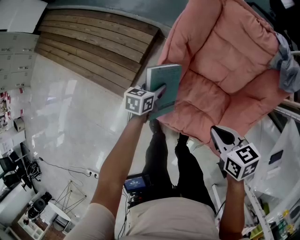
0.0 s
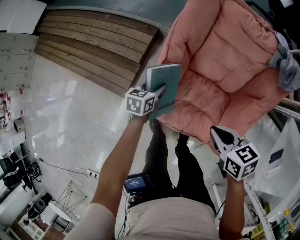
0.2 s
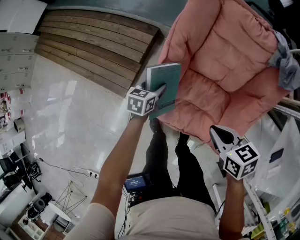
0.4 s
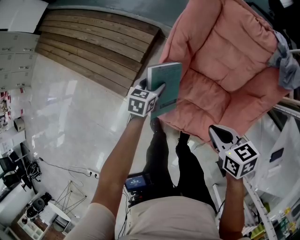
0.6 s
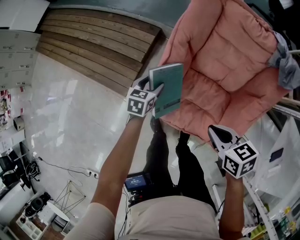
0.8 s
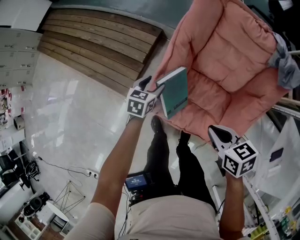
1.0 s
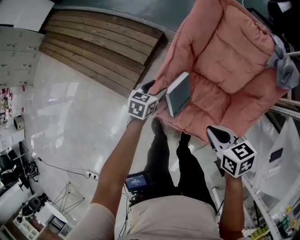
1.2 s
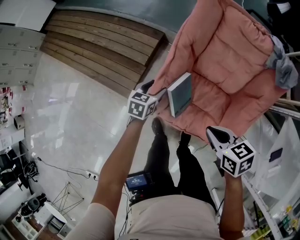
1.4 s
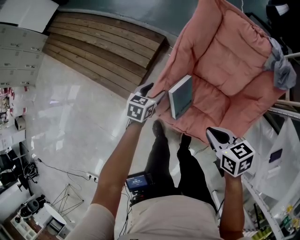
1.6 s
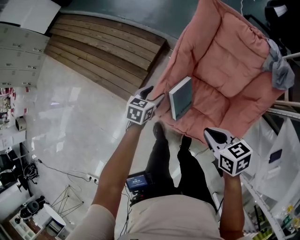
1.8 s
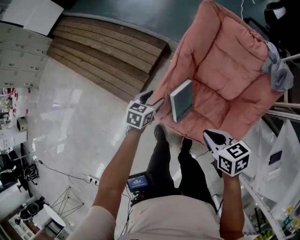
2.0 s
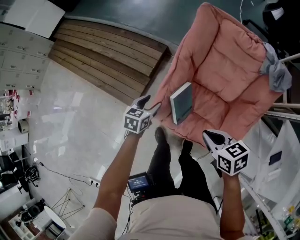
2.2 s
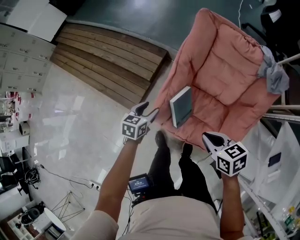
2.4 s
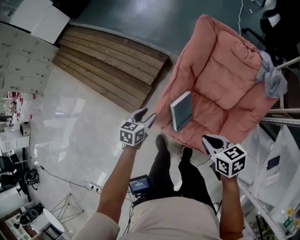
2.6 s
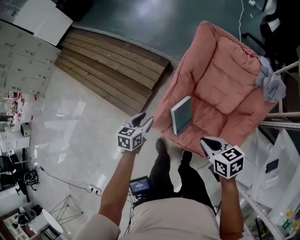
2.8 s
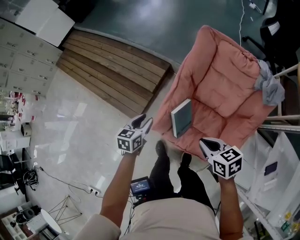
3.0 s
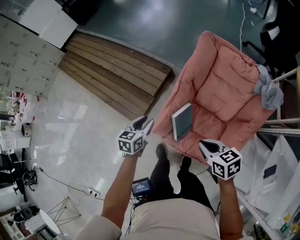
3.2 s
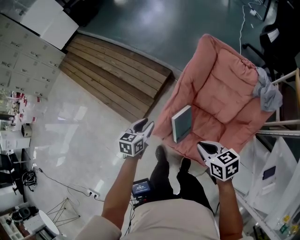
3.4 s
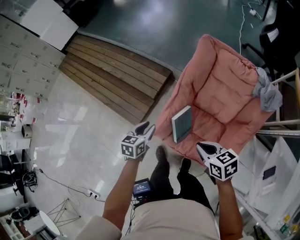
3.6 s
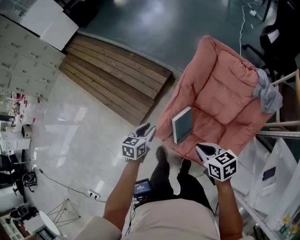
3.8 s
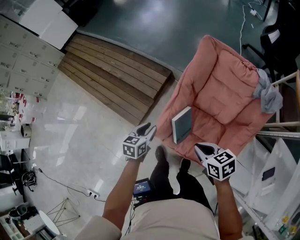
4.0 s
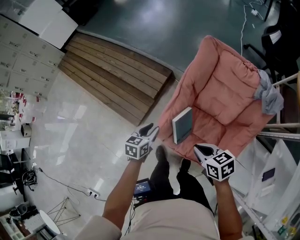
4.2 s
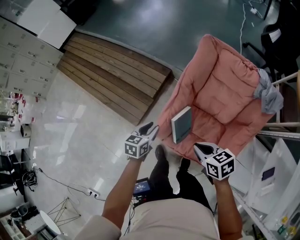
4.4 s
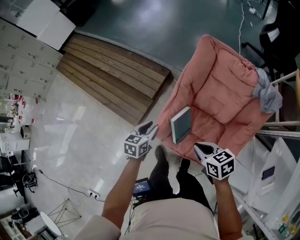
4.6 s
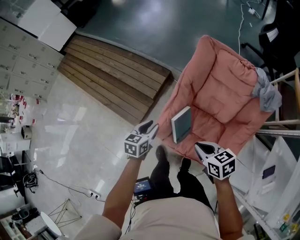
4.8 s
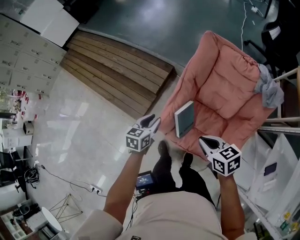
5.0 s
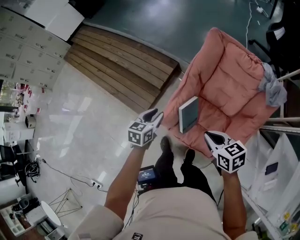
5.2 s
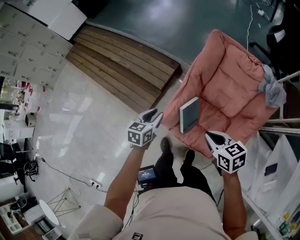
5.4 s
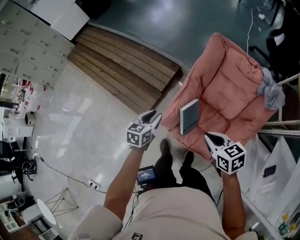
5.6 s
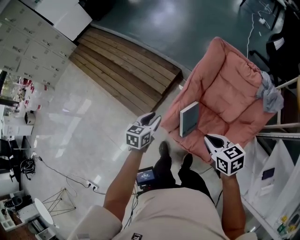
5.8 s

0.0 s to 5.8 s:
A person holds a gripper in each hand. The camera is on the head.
0.0 to 1.4 s: The right gripper shifts by roughly 5 cm, while the left gripper changes place by some 5 cm.
1.4 to 2.8 s: The left gripper is displaced upward, to the left and backward by roughly 15 cm; the right gripper is displaced upward by about 5 cm.
2.8 to 4.4 s: There are only small adjustments of the grippers.
4.4 to 5.8 s: The grippers both shift upward by roughly 5 cm.

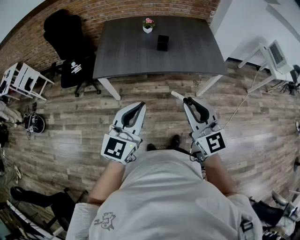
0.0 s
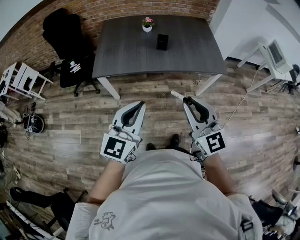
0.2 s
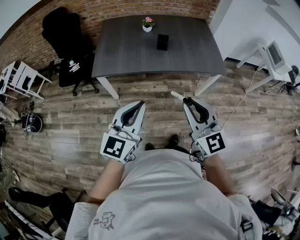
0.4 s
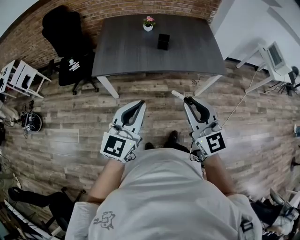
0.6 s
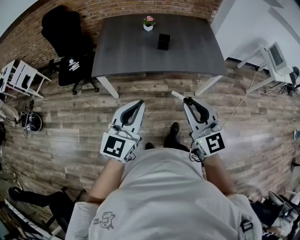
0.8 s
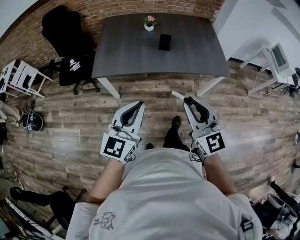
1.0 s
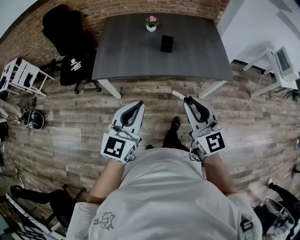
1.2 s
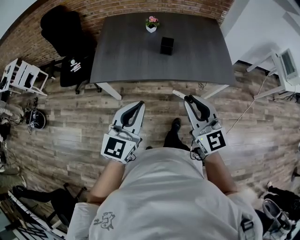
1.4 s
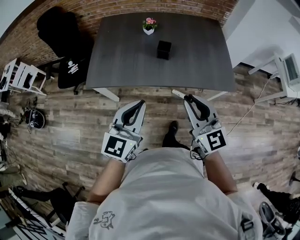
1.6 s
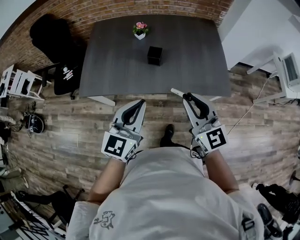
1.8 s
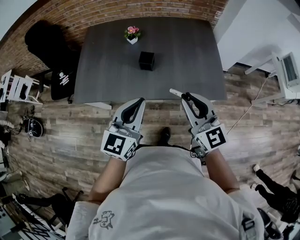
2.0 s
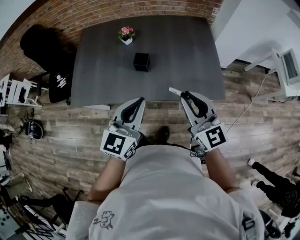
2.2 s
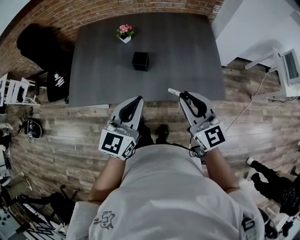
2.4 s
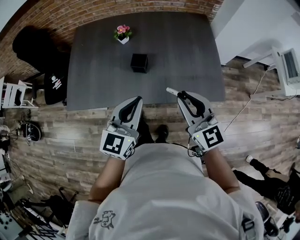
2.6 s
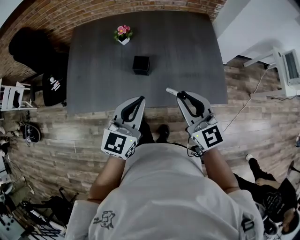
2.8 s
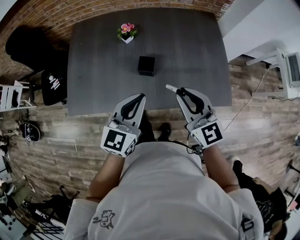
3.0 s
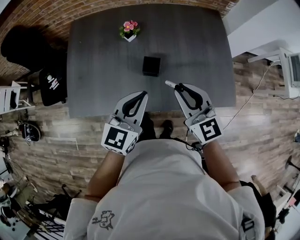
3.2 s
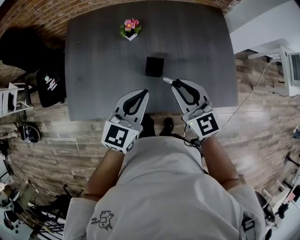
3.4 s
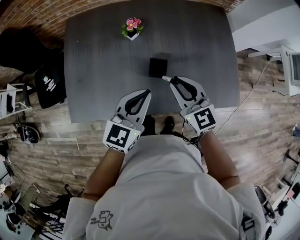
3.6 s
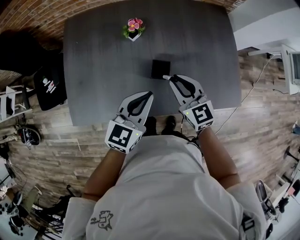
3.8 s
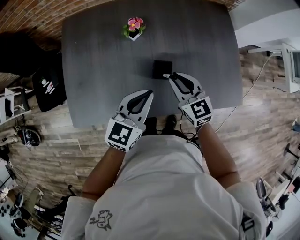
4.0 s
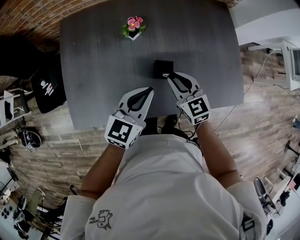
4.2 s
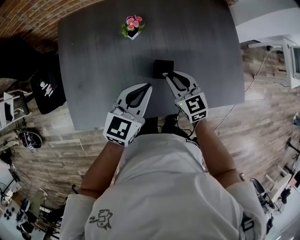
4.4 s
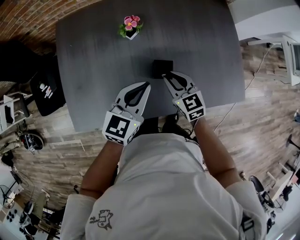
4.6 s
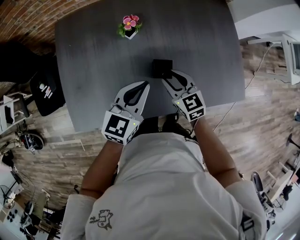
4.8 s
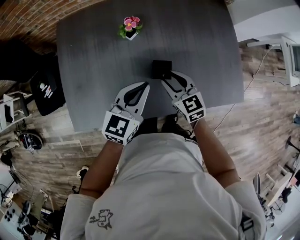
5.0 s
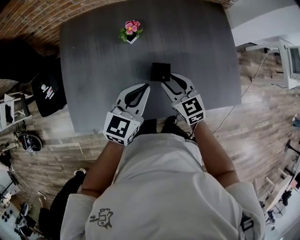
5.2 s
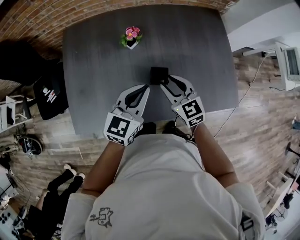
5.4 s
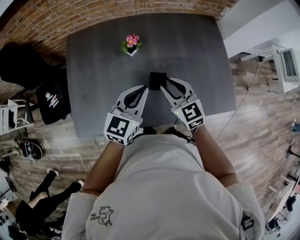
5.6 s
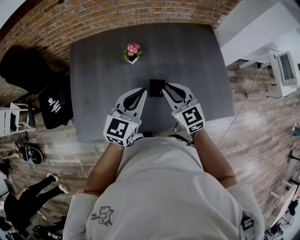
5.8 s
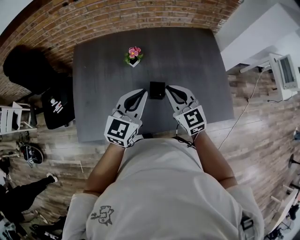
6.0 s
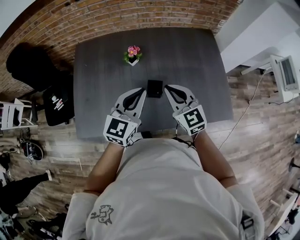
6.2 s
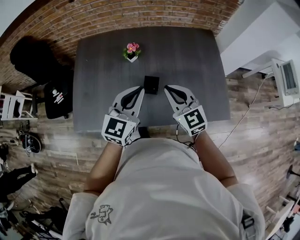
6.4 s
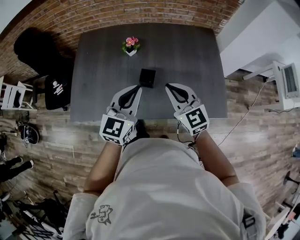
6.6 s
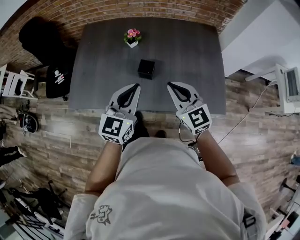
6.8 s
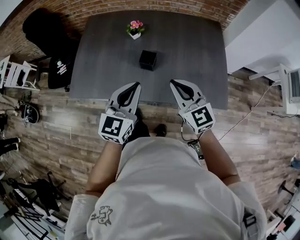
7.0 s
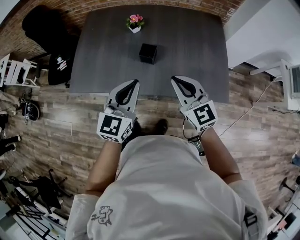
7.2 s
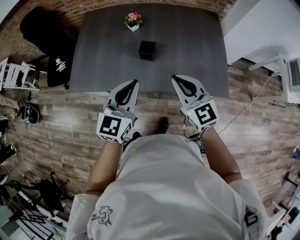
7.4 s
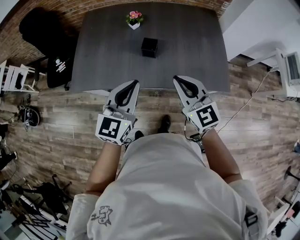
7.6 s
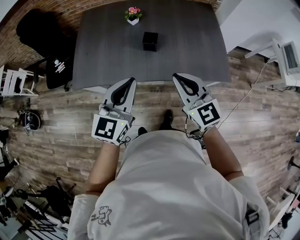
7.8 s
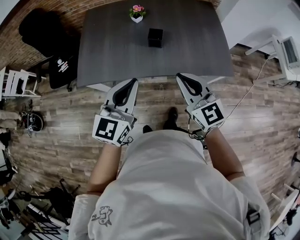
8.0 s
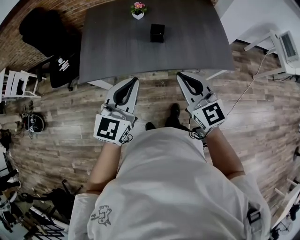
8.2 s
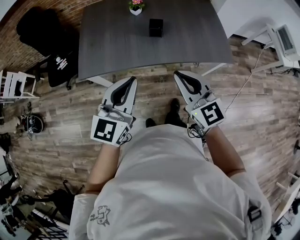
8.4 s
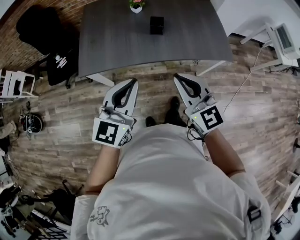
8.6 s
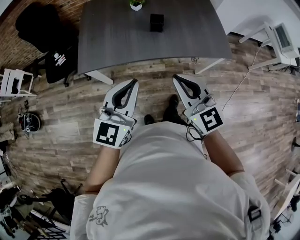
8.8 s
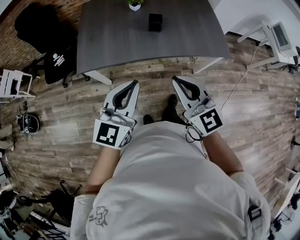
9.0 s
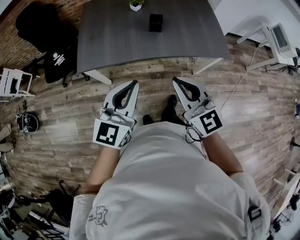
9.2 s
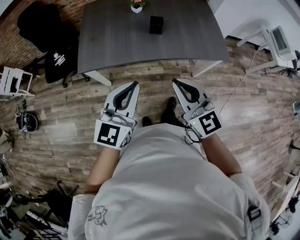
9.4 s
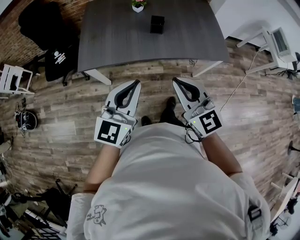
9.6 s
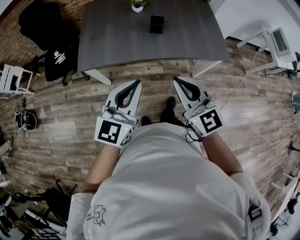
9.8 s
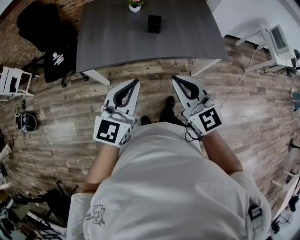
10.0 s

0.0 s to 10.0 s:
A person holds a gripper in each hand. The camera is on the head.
0.0 to 1.4 s: The two grippers go about 15 cm forward.
1.4 to 2.8 s: The grippers both shift forward and to the right by some 30 cm.
2.8 to 4.2 s: The right gripper heads forward, downward and to the left, covering approximately 30 cm. Meanwhile the left gripper is displaced forward, to the left and downward by some 20 cm.
4.2 to 5.8 s: Both grippers move upward, roughly 10 cm.
5.8 to 7.2 s: The right gripper moves backward and to the right, some 20 cm. Meanwhile the left gripper moves backward, about 20 cm.
7.2 to 8.6 s: The grippers both shift backward and to the left by about 25 cm.
8.6 to 10.0 s: There are only small adjustments of the grippers.

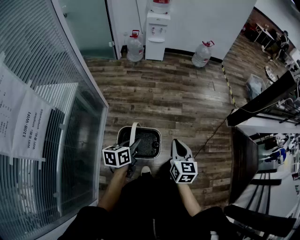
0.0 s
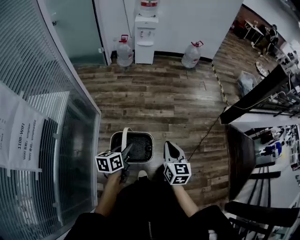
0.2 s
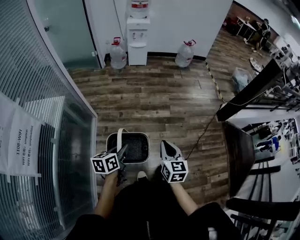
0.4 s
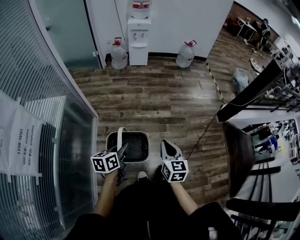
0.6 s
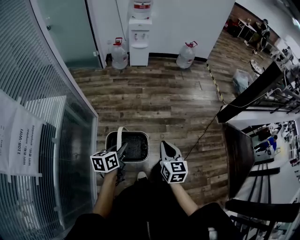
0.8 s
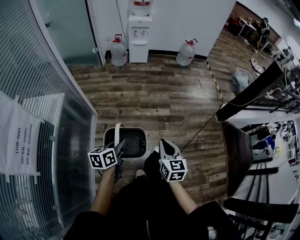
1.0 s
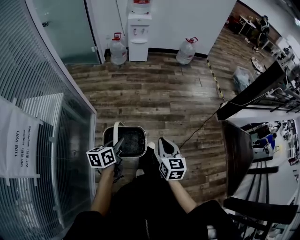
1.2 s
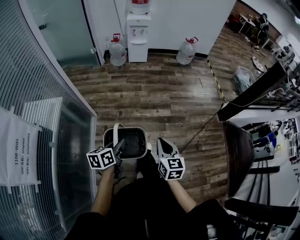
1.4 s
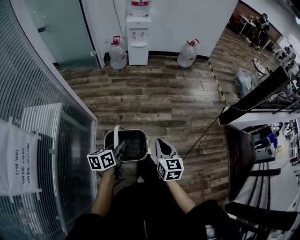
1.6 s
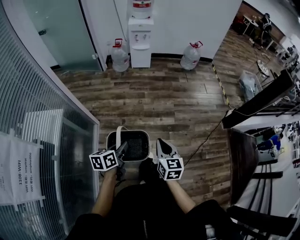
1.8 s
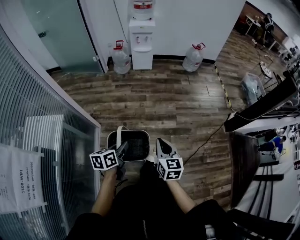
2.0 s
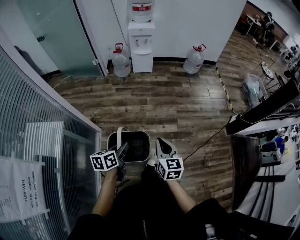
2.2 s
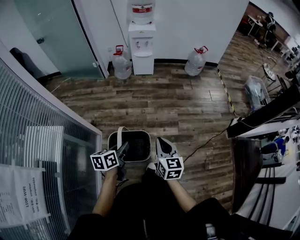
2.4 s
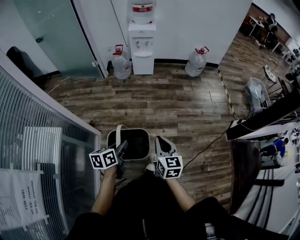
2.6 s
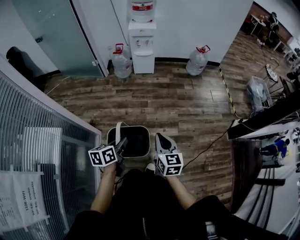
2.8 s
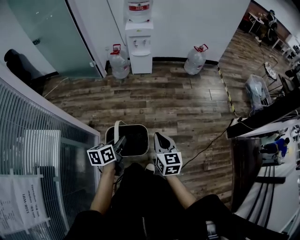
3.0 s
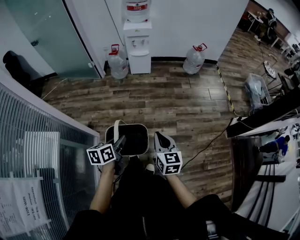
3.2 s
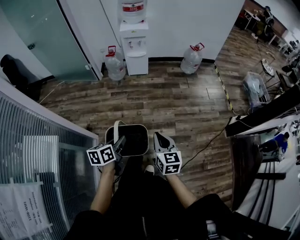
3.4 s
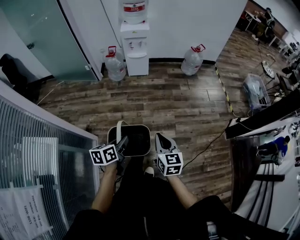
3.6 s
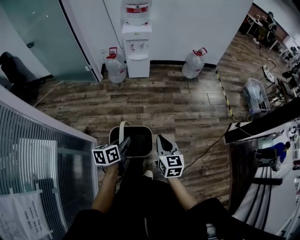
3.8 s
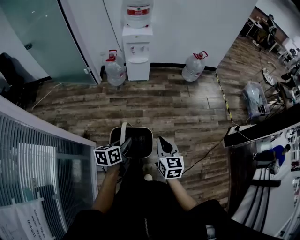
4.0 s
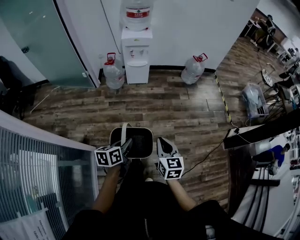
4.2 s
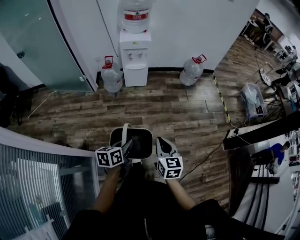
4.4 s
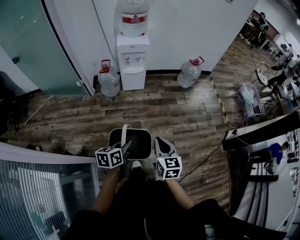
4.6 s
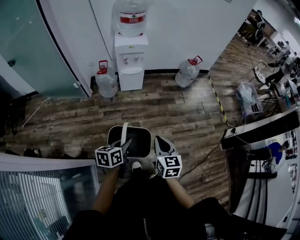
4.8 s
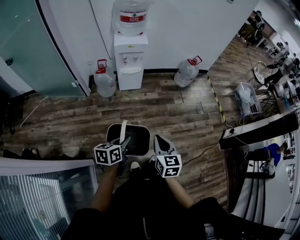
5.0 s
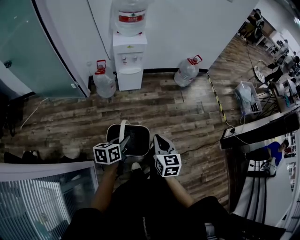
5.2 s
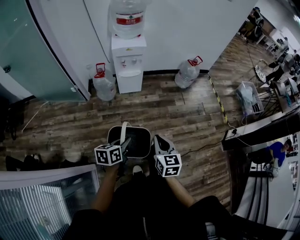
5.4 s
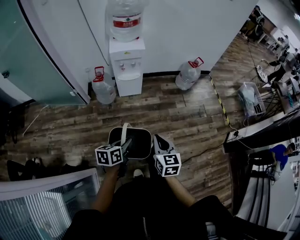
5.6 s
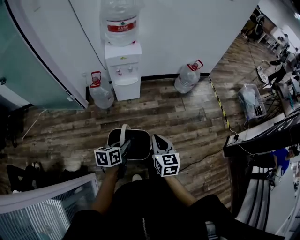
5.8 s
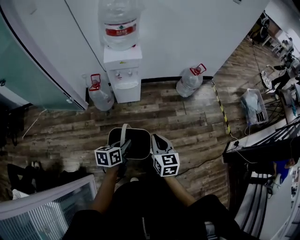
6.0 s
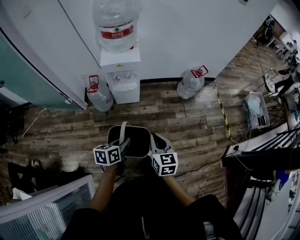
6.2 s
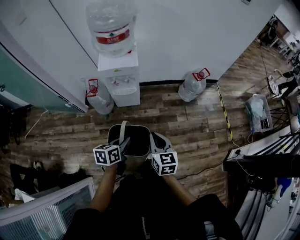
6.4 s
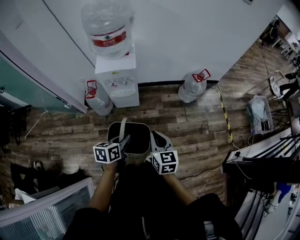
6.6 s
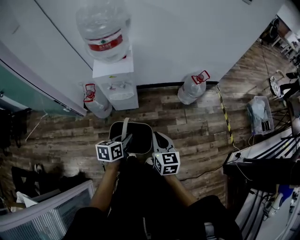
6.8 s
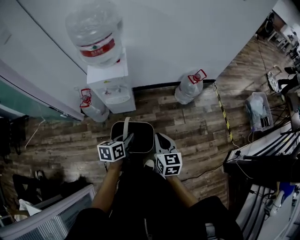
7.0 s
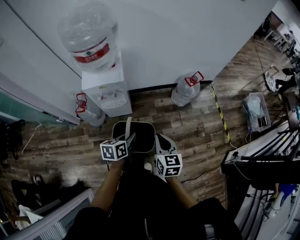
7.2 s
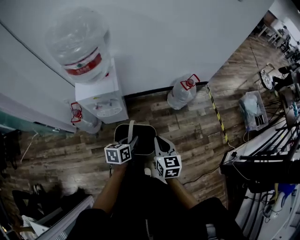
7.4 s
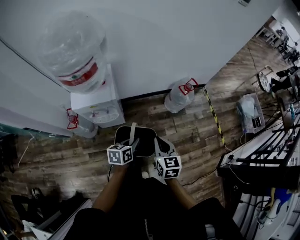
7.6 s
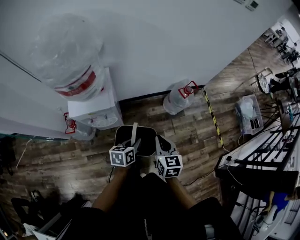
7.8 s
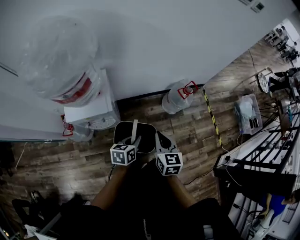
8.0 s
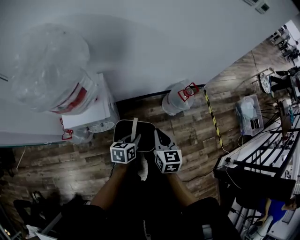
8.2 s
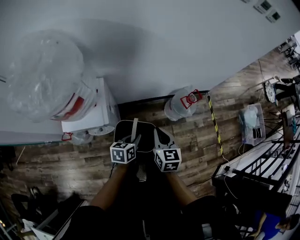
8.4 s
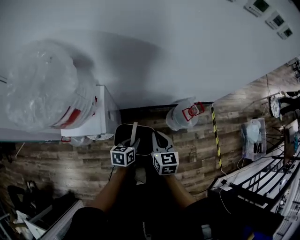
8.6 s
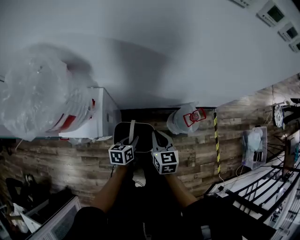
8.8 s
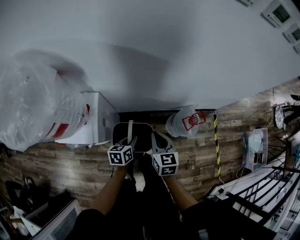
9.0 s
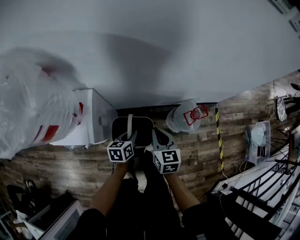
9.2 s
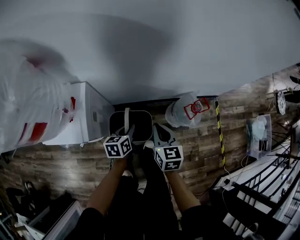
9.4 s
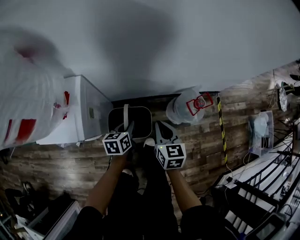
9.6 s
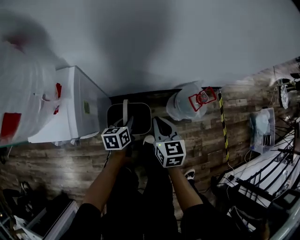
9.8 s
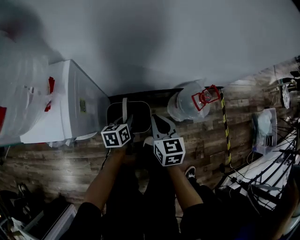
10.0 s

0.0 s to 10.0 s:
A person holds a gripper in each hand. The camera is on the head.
0.0 to 1.4 s: The grippers both shift forward by roughly 5 cm.
1.4 to 2.8 s: Both grippers move forward, about 30 cm.
2.8 to 4.2 s: Both grippers travel together forward, some 15 cm.
4.2 to 5.8 s: The grippers both shift forward by about 25 cm.
5.8 to 7.2 s: Both grippers travel together forward, about 30 cm.
7.2 to 8.6 s: Both grippers move forward, roughly 35 cm.
8.6 to 10.0 s: The left gripper is displaced downward and forward by roughly 25 cm. Meanwhile the right gripper moves downward, about 20 cm.
